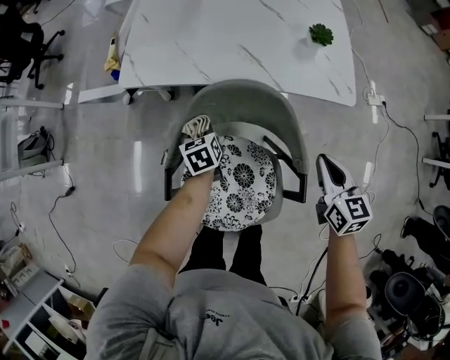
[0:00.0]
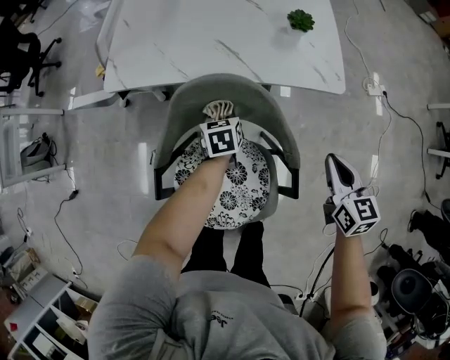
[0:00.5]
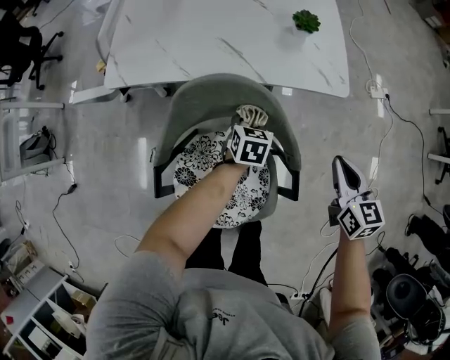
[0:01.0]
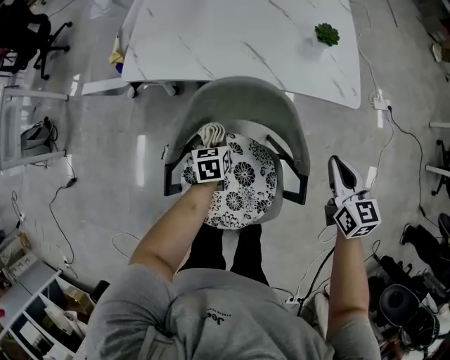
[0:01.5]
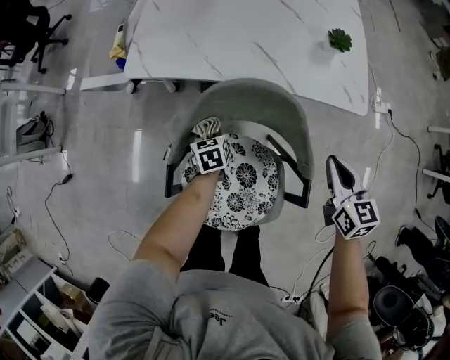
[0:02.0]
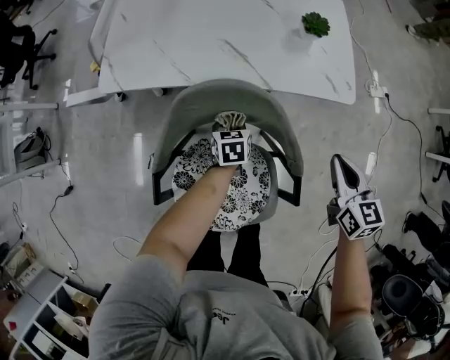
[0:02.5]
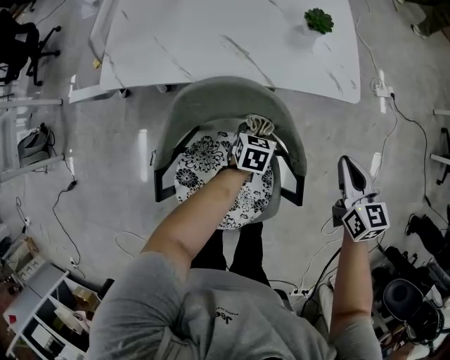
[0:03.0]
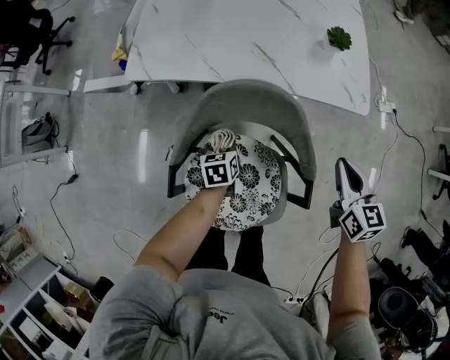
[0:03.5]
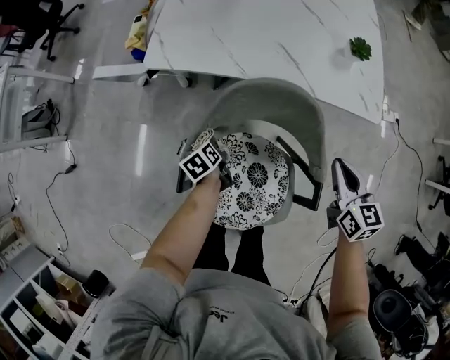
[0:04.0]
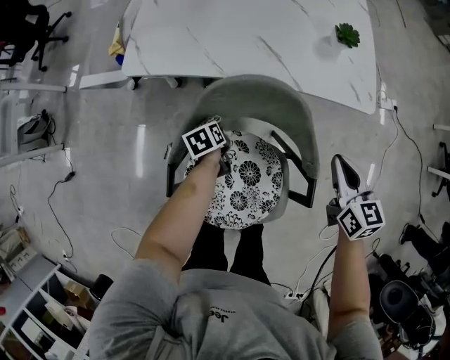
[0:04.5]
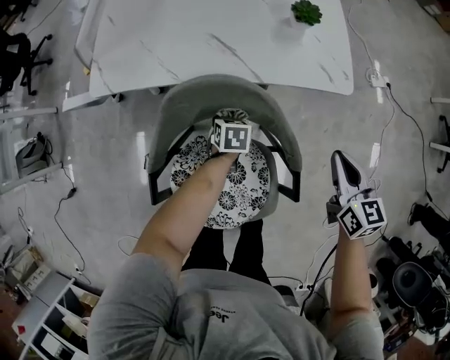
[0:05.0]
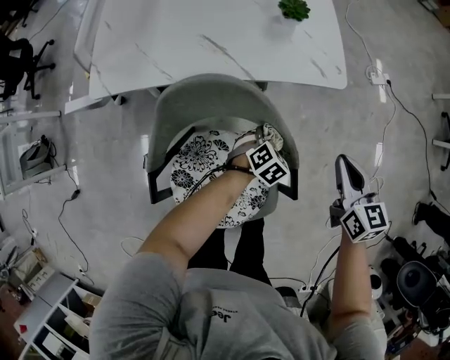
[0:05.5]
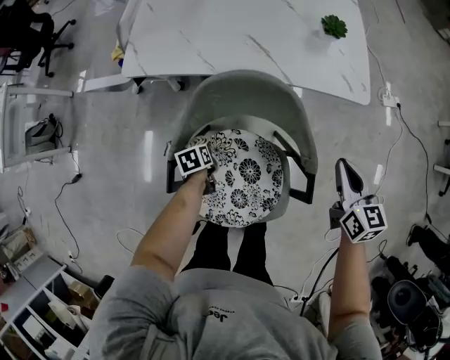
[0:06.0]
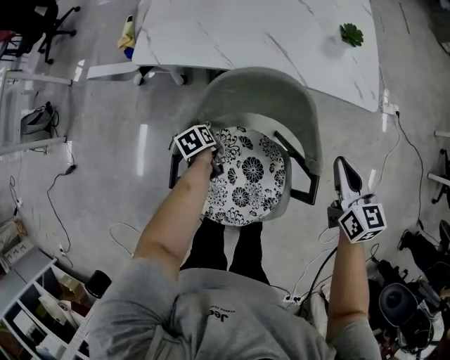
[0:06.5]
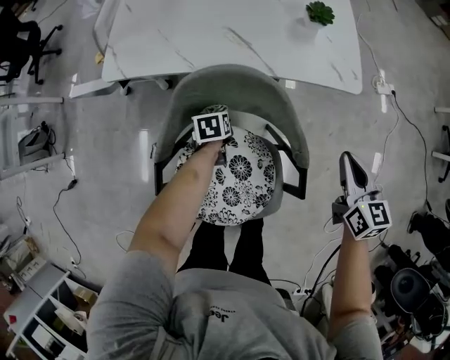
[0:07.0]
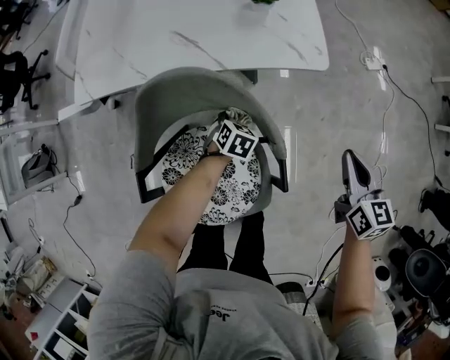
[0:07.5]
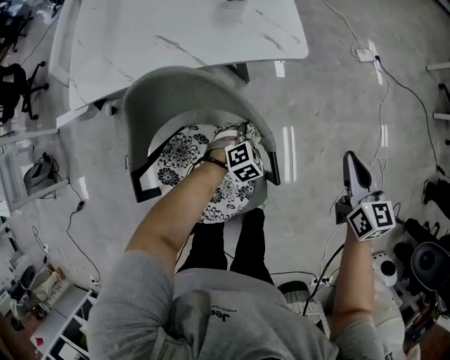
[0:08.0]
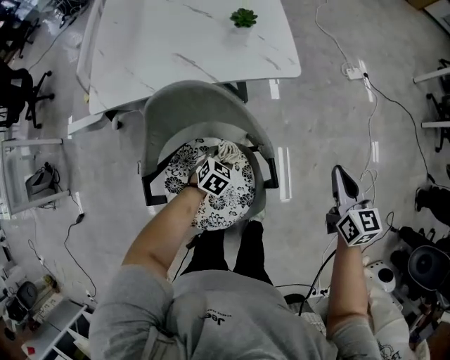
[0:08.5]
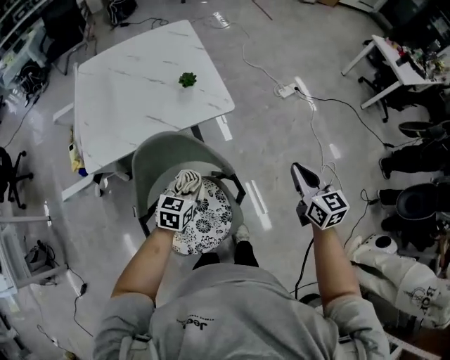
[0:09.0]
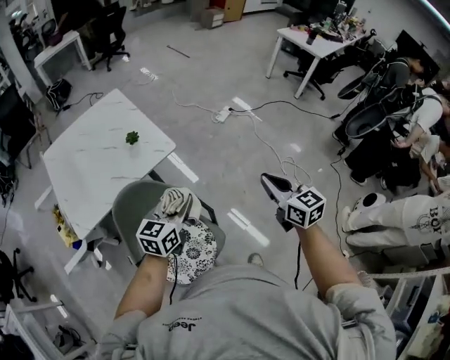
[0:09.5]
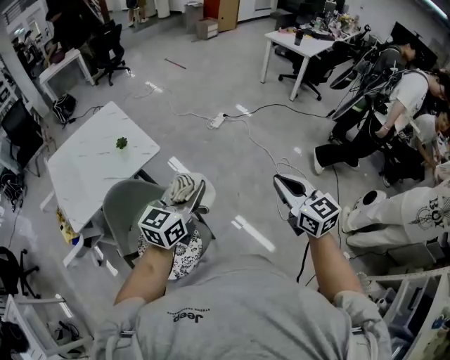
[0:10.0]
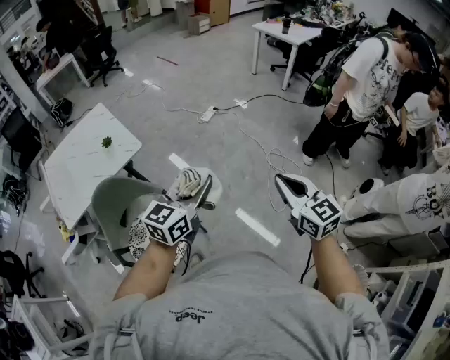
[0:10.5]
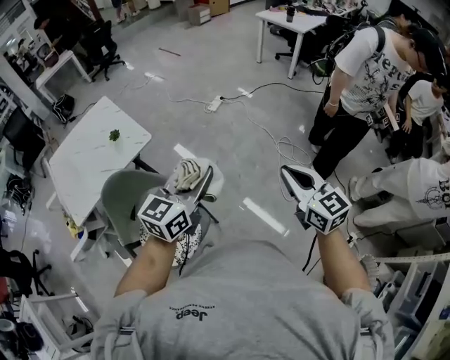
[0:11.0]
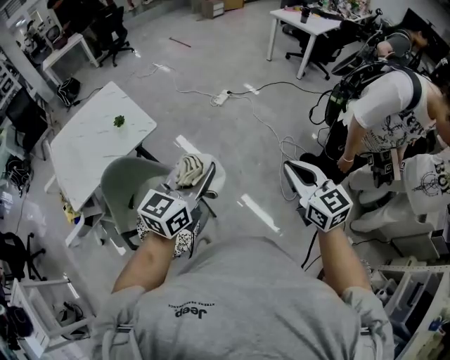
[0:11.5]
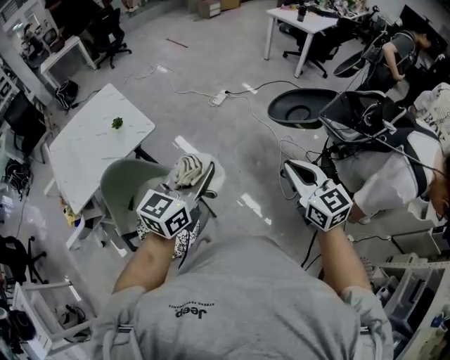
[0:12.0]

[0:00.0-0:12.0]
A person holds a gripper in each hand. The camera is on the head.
0:00.0 to 0:02.0: The left gripper travels downward by some 5 cm, and travels to the right and back again, about 20 cm each way. The right gripper reaches some 10 cm to the right, then returns.
0:02.0 to 0:04.0: The left gripper heads backward, covering approximately 5 cm, goes to the right and returns, roughly 25 cm each way, and changes its angle by roughly 30 degrees, while the right gripper moves roughly 10 cm to the right and comes back.
0:04.0 to 0:06.0: The left gripper rotates approximately 20 degrees.
0:06.0 to 0:08.0: The right gripper moves some 20 cm. The left gripper shifts by about 35 cm, and twists about 100 degrees clockwise, seen from behind.
0:08.0 to 0:10.0: The left gripper is displaced upward by roughly 60 cm, and angles its fingers upward, by some 60 degrees; the right gripper ends up about 50 cm from where it was, and rotates approximately 30 degrees.
0:10.0 to 0:12.0: The grippers both shift to the right by approximately 5 cm.

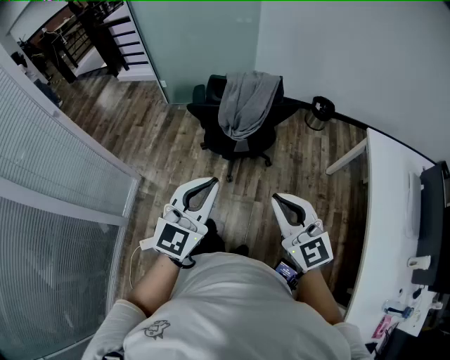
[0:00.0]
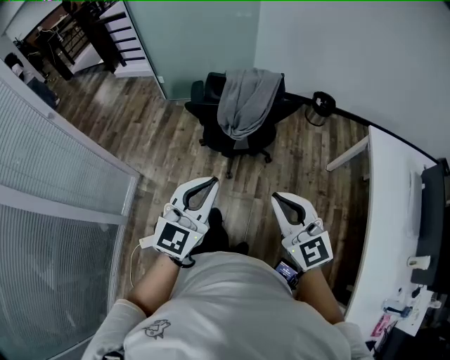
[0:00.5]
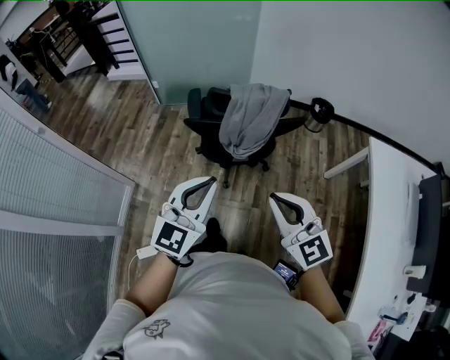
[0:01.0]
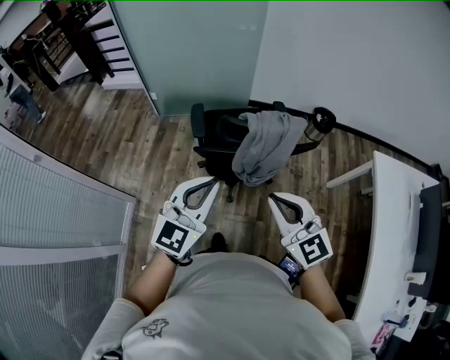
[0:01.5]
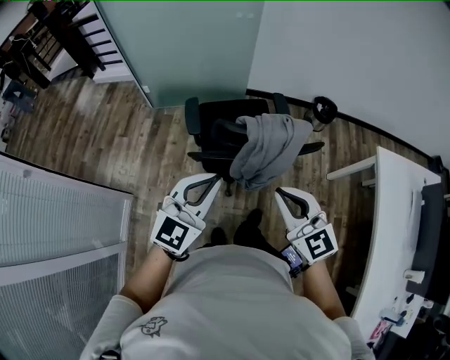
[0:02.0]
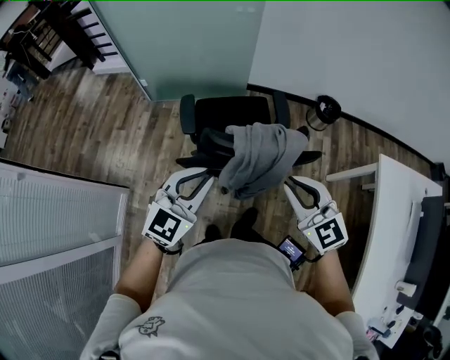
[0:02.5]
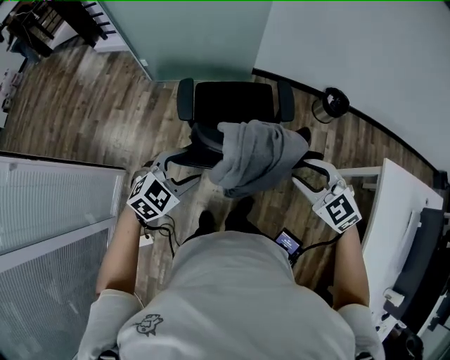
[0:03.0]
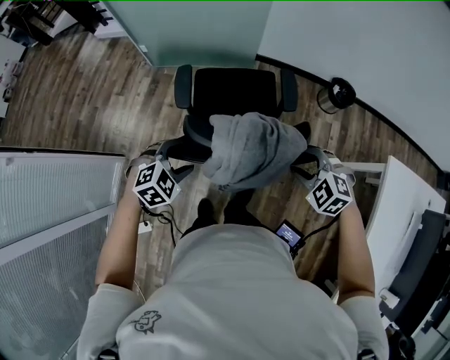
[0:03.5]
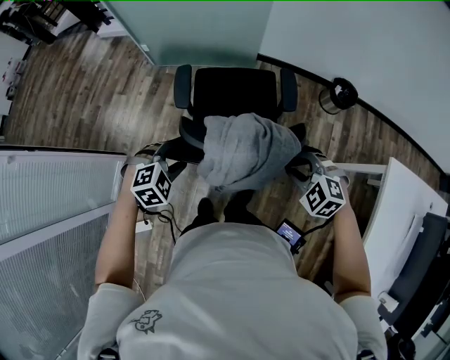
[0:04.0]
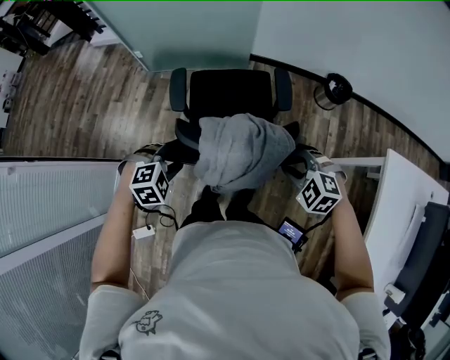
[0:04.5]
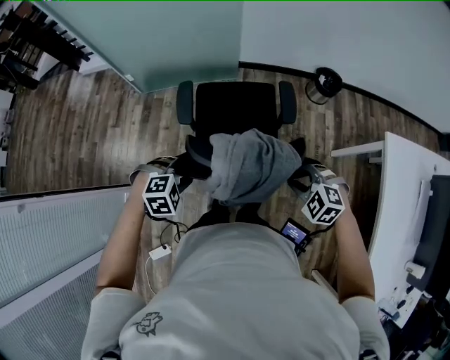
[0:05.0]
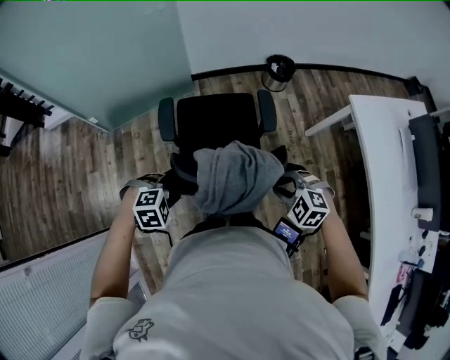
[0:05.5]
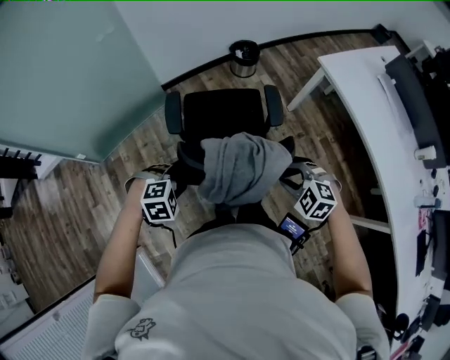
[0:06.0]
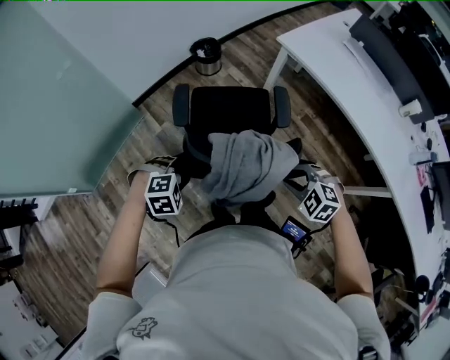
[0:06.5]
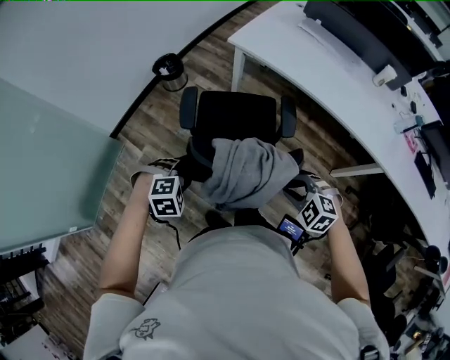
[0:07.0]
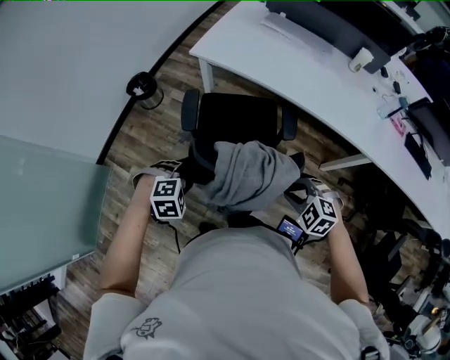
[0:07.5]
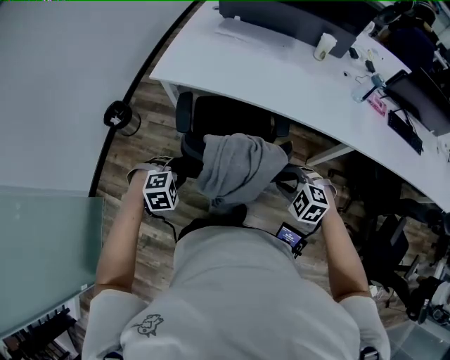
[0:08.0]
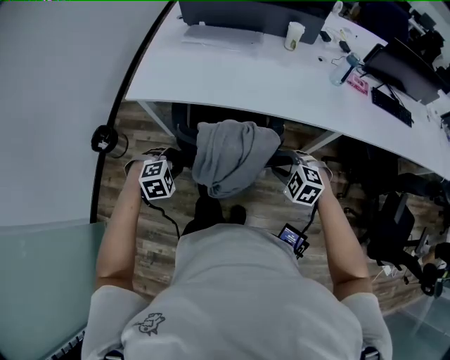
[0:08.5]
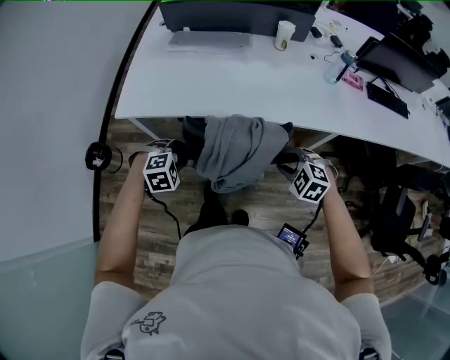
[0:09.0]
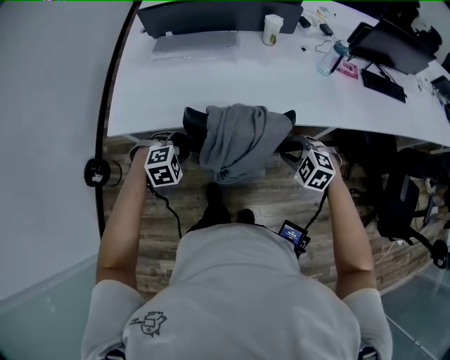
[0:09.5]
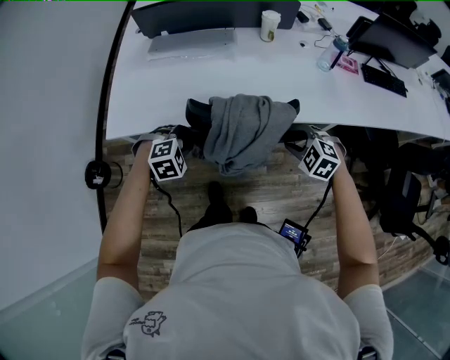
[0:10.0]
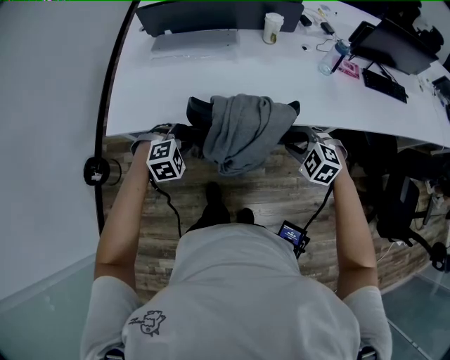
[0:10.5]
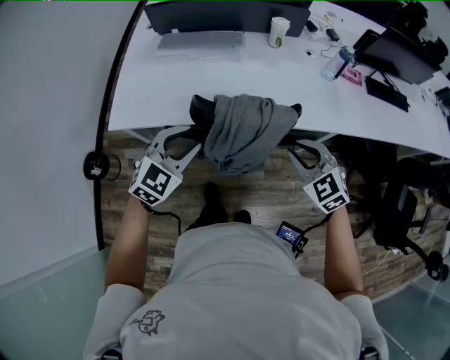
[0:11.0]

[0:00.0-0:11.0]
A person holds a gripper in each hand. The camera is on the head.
0:00.0 to 0:02.0: The two grippers go roughly 35 cm forward.
0:02.0 to 0:03.5: The left gripper heads downward and forward, covering approximately 25 cm, tilts its fingers about 50 degrees downward, and opens its fingers. Meanwhile the right gripper shifts roughly 30 cm downward, forward and to the right, points its fingers roughly 40 degrees further downward, and opens.
0:03.5 to 0:05.5: The left gripper swivels roughly 40 degrees, and closes its fingers. Meanwhile the right gripper changes place by some 10 cm, and turns by approximately 20 degrees.
0:05.5 to 0:07.5: The pair of grippers is taken about 40 cm. The left gripper rolls clockwise, seen from behind, by roughly 50 degrees; the right gripper twists about 50 degrees clockwise, seen from behind.
0:07.5 to 0:09.0: The grippers both shift forward and to the right by some 30 cm. The right gripper rotates approximately 20 degrees; the left gripper changes its angle by about 20 degrees.
0:09.0 to 0:11.0: The right gripper travels upward and forward by approximately 15 cm, and rotates approximately 30 degrees. Meanwhile the left gripper moves upward, forward and to the right, roughly 20 cm, and tilts its fingers roughly 40 degrees upward.

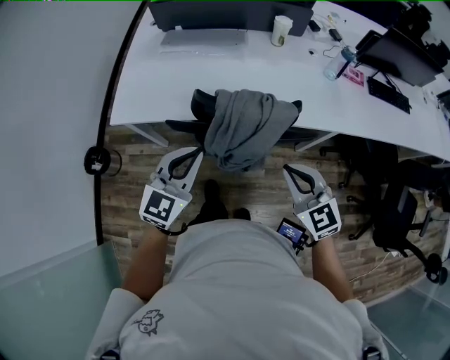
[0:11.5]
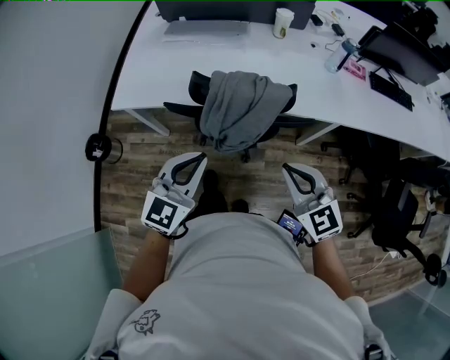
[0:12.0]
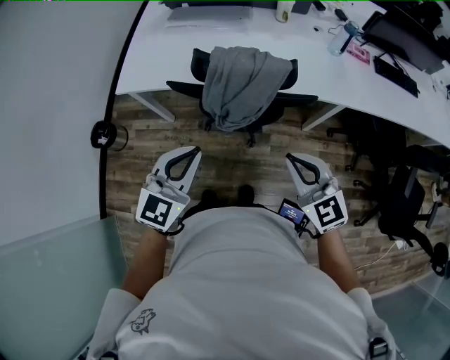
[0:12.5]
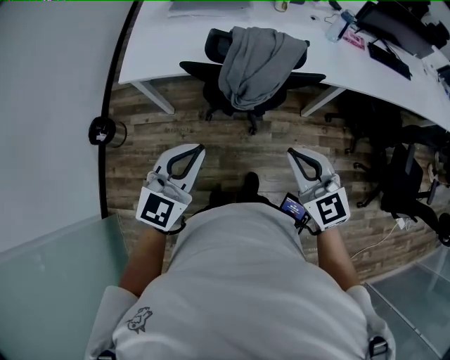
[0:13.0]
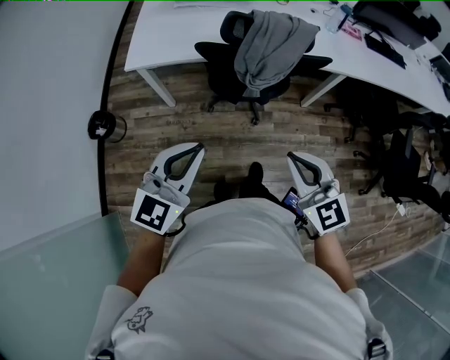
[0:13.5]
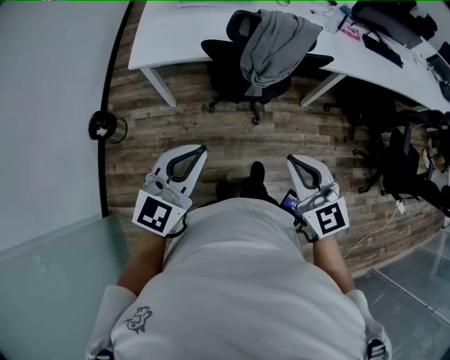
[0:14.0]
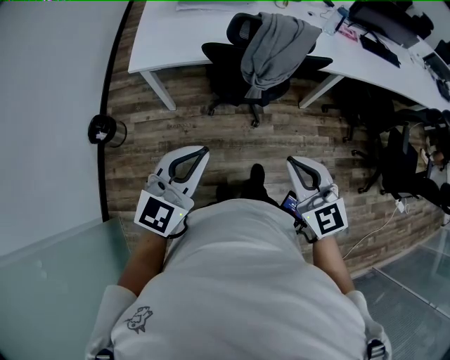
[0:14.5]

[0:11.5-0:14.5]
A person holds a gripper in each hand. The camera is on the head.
0:11.5 to 0:13.0: Both grippers travel together backward, some 20 cm.
0:13.0 to 0:14.5: The two grippers go approximately 15 cm backward and to the left.
